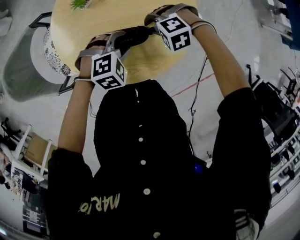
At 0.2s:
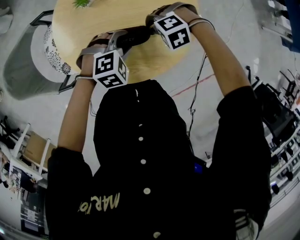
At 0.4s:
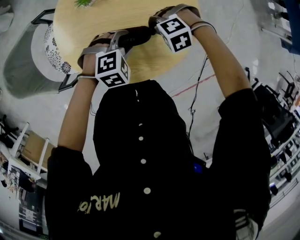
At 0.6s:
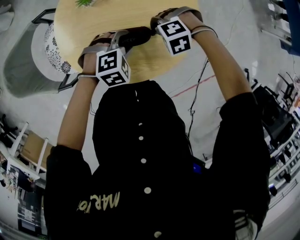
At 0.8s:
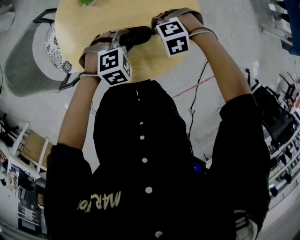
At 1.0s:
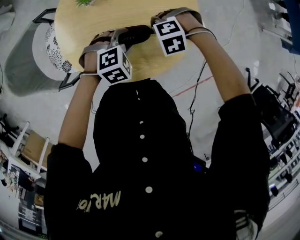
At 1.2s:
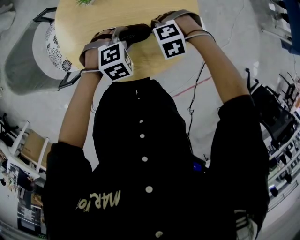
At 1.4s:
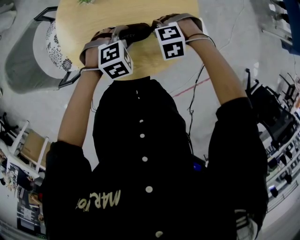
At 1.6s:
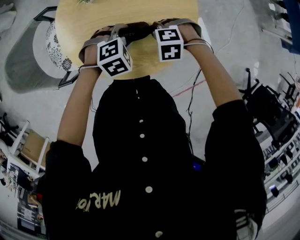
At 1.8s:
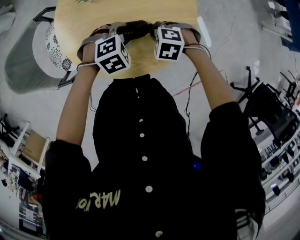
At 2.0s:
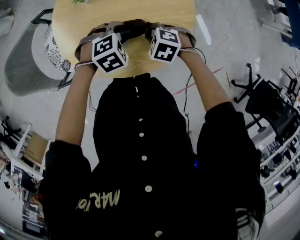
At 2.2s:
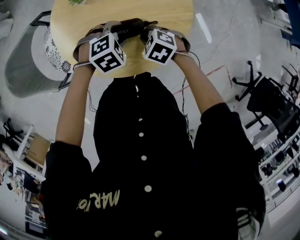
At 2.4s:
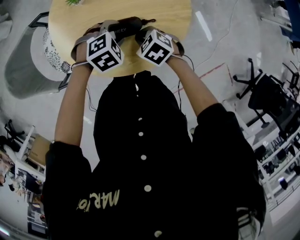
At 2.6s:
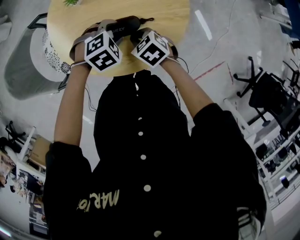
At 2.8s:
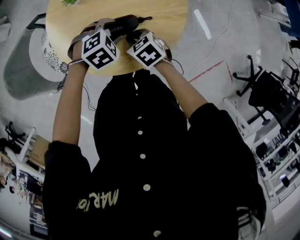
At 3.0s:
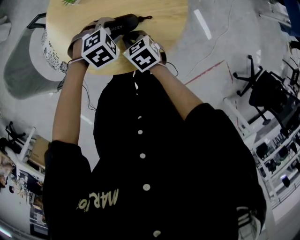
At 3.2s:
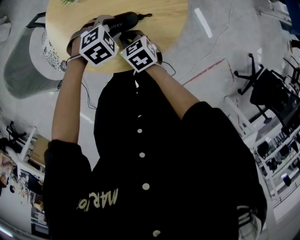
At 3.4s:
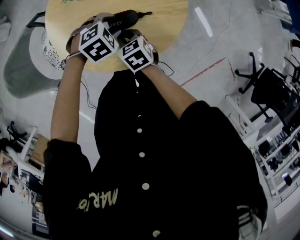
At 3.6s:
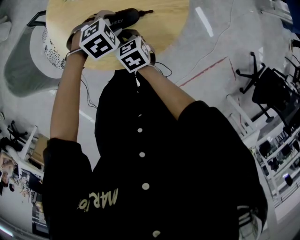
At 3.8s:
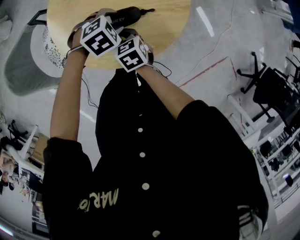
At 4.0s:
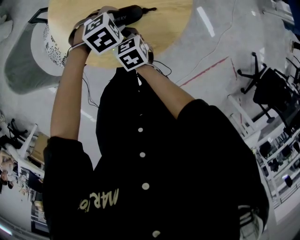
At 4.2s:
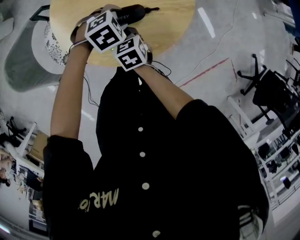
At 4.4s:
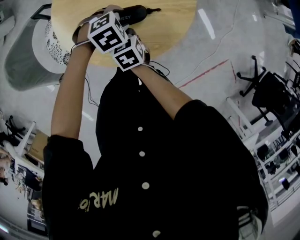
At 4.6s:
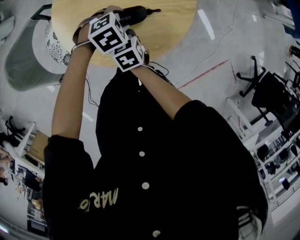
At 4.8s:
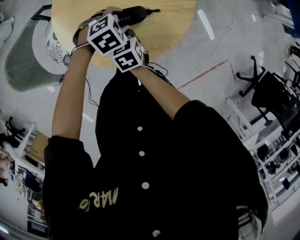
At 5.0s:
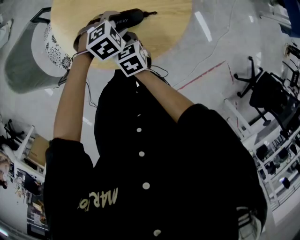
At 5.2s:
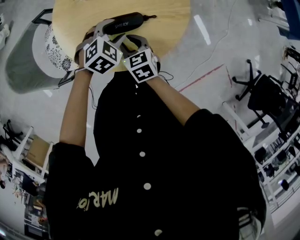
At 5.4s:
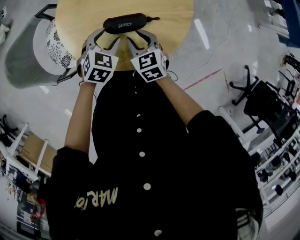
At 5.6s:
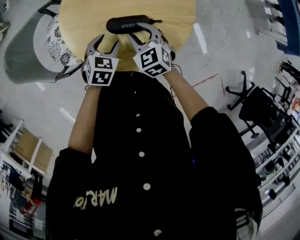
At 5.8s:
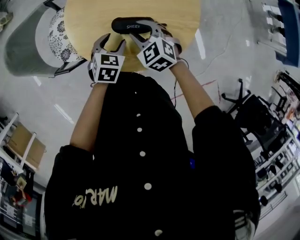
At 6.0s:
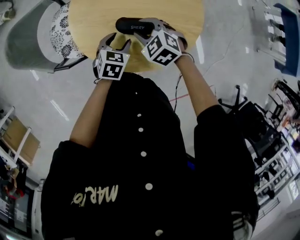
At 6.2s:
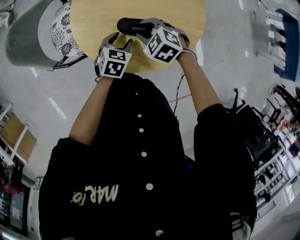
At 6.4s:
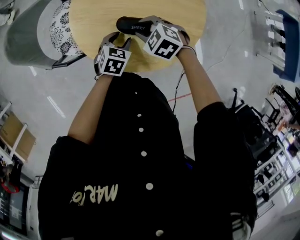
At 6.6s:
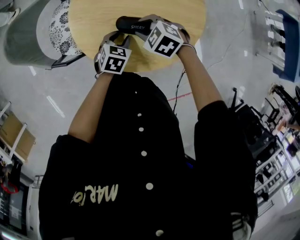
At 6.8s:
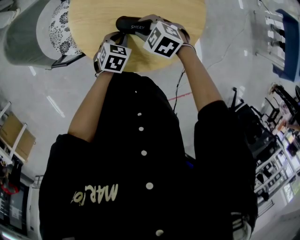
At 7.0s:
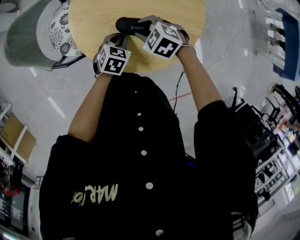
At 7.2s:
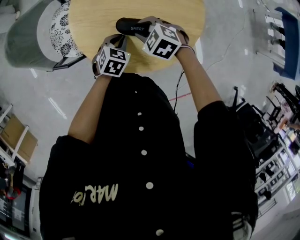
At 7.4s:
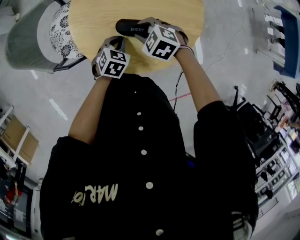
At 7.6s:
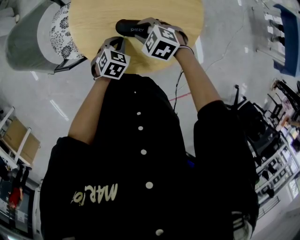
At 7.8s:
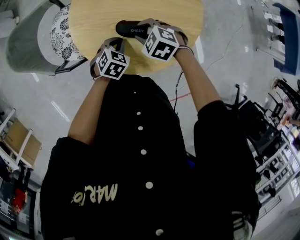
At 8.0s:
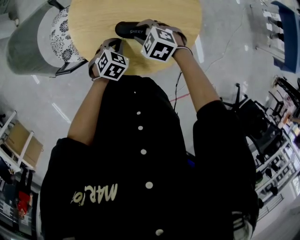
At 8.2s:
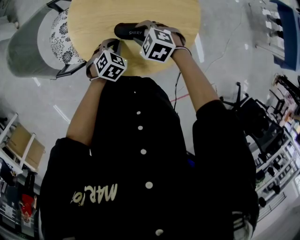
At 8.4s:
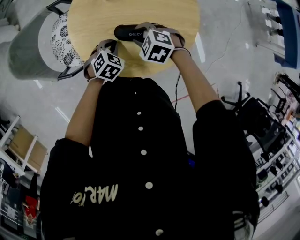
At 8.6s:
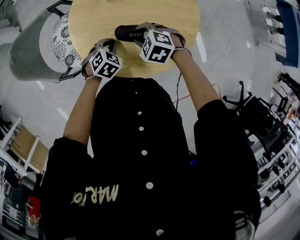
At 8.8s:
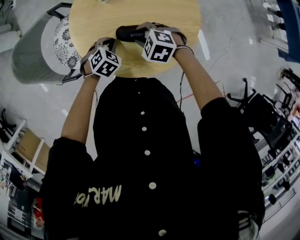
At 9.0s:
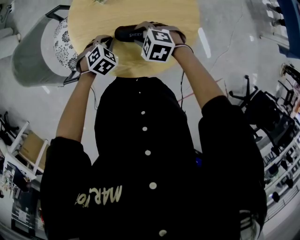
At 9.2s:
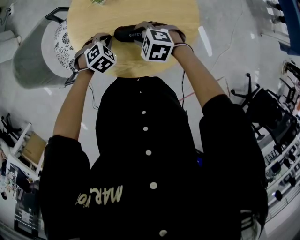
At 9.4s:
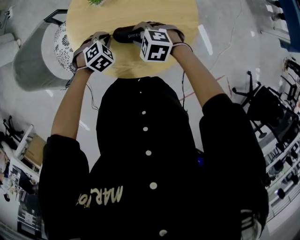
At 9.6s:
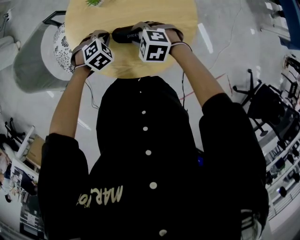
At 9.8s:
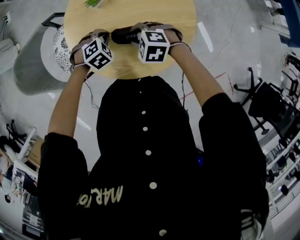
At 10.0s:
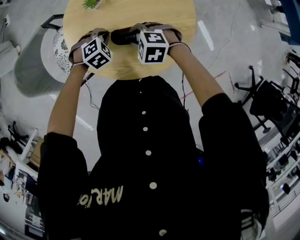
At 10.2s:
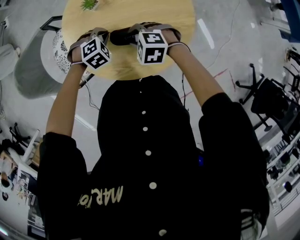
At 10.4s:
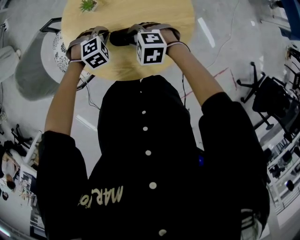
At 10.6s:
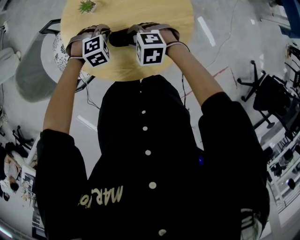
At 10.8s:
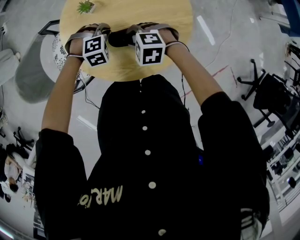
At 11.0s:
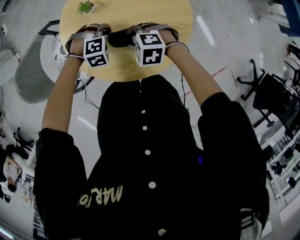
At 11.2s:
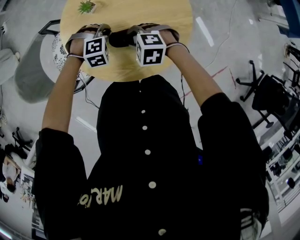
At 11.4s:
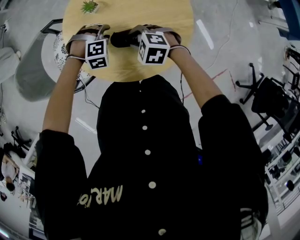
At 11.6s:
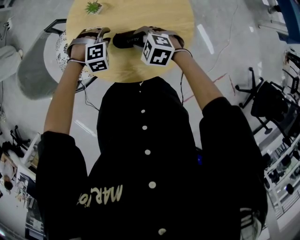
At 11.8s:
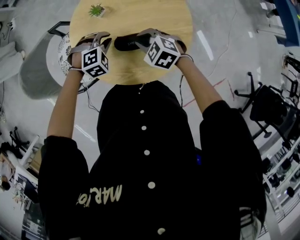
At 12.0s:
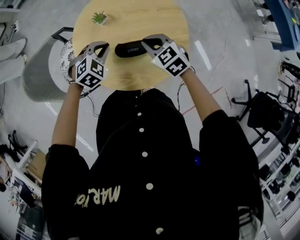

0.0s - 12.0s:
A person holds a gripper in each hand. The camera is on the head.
0.0s - 1.6s: The grippers make only small movements.
1.6s - 3.0s: The right gripper ends up about 5 cm from where it was, and twists roughly 60 degrees clockwise, seen from behind.
3.0s - 4.4s: The right gripper heads to the left, covering some 5 cm.
4.4s - 6.0s: The right gripper moves upward, some 5 cm, twists roughly 50 degrees counterclockwise, seen from behind, and opens its fingers, while the left gripper moves approximately 5 cm, and twists about 50 degrees counterclockwise, seen from behind.
6.0s - 7.6s: The left gripper closes its fingers.
7.6s - 9.0s: The left gripper shifts by approximately 5 cm, and swivels roughly 30 degrees.
9.0s - 10.4s: The left gripper changes place by some 5 cm, and swivels about 30 degrees.
10.4s - 12.0s: The right gripper moves upward and to the right, roughly 10 cm, swivels about 40 degrees, and closes up. Meanwhile the left gripper shifts approximately 15 cm upward, changes its angle by about 20 degrees, and opens and closes again.

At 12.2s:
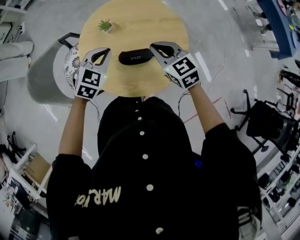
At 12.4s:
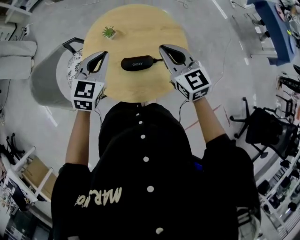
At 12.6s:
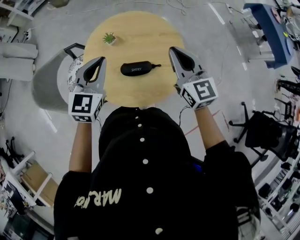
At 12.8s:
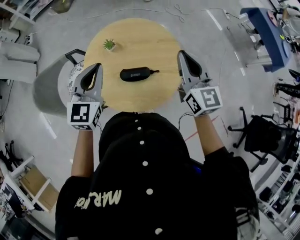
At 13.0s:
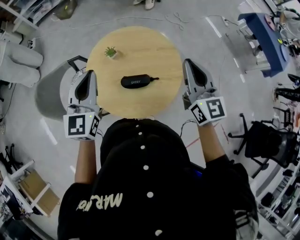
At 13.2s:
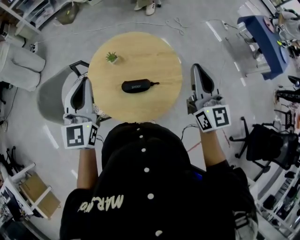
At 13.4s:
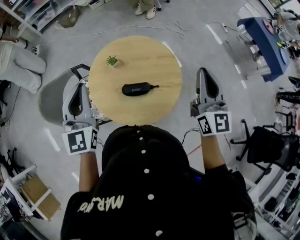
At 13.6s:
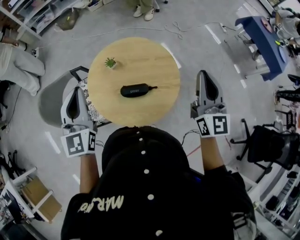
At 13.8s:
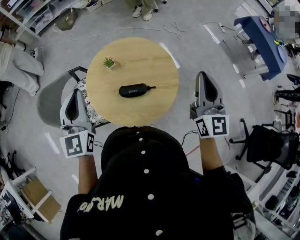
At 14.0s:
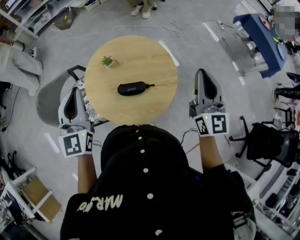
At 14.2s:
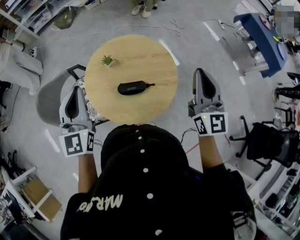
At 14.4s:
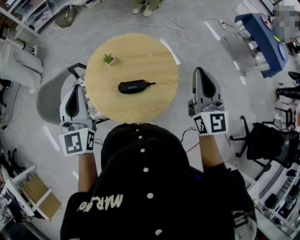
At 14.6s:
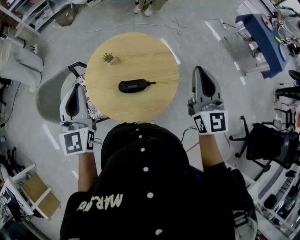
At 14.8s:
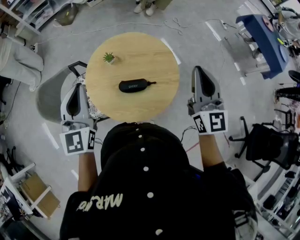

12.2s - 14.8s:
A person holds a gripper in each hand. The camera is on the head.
12.2s - 13.4s: The left gripper is displaced upward by roughly 25 cm, and tips its fingers upward by approximately 40 degrees, while the right gripper heads upward and to the right, covering about 30 cm, and angles its fingers upward, by about 40 degrees.
13.4s - 14.8s: The grippers stay close to where they were, moving slightly.

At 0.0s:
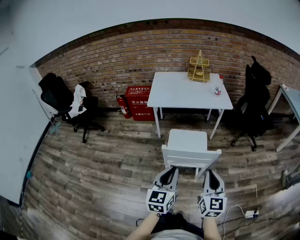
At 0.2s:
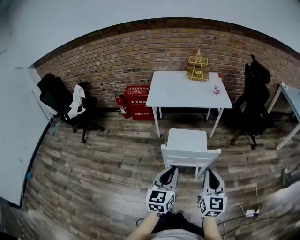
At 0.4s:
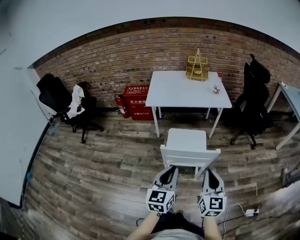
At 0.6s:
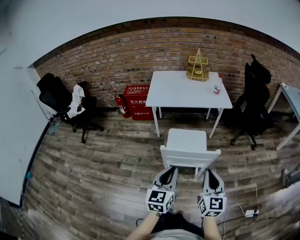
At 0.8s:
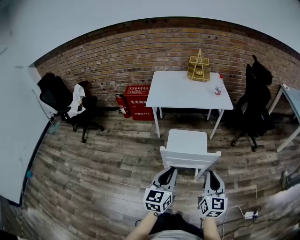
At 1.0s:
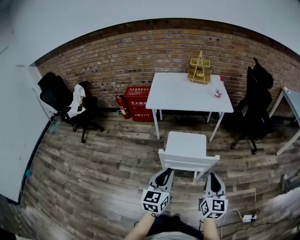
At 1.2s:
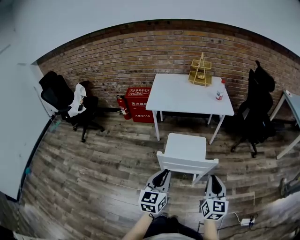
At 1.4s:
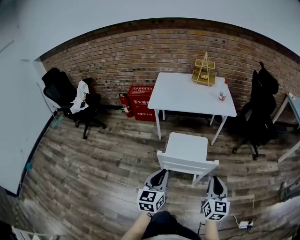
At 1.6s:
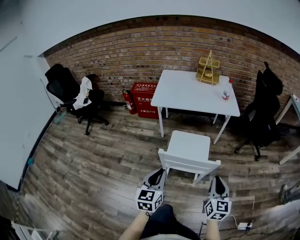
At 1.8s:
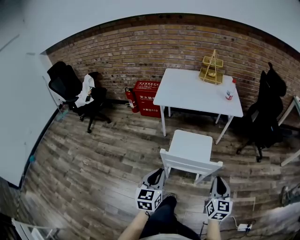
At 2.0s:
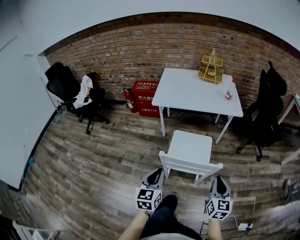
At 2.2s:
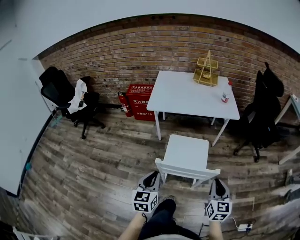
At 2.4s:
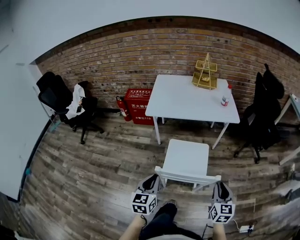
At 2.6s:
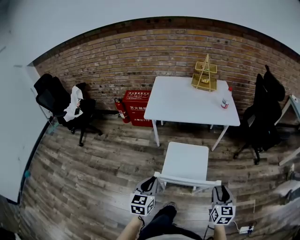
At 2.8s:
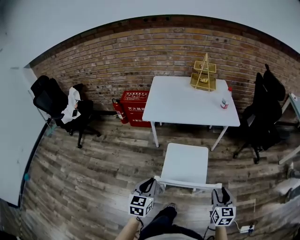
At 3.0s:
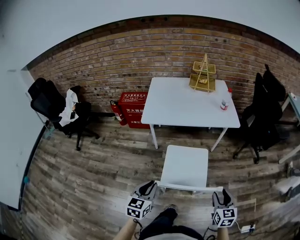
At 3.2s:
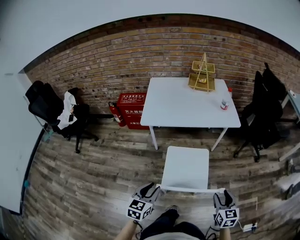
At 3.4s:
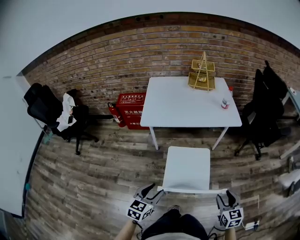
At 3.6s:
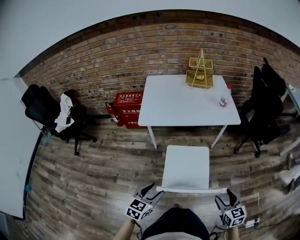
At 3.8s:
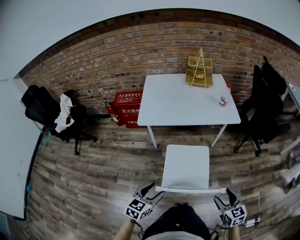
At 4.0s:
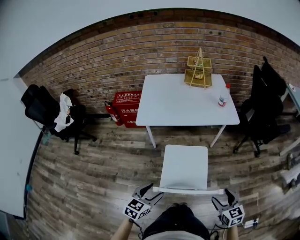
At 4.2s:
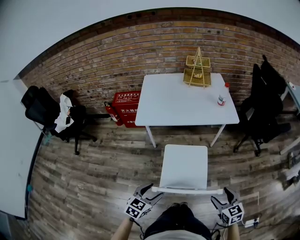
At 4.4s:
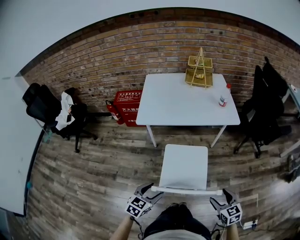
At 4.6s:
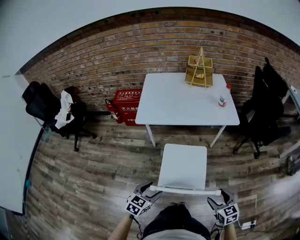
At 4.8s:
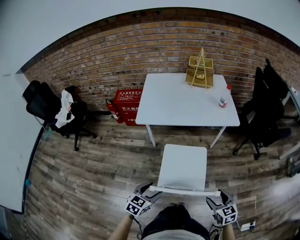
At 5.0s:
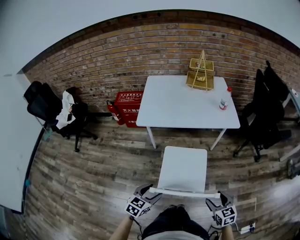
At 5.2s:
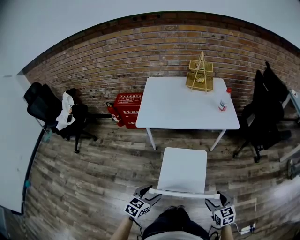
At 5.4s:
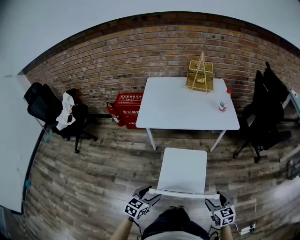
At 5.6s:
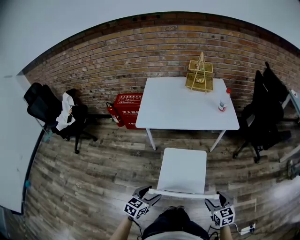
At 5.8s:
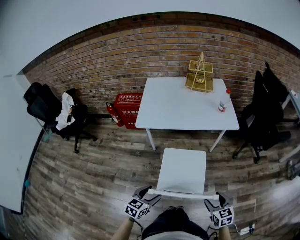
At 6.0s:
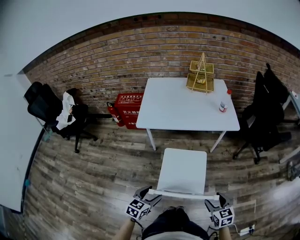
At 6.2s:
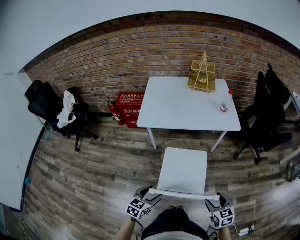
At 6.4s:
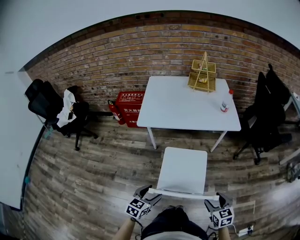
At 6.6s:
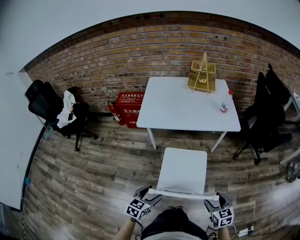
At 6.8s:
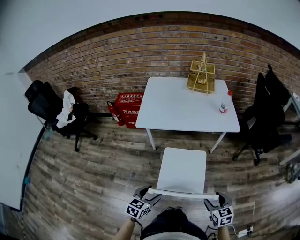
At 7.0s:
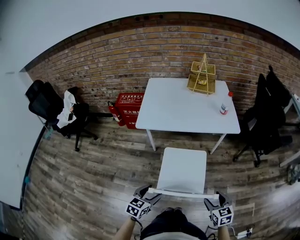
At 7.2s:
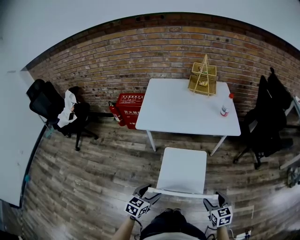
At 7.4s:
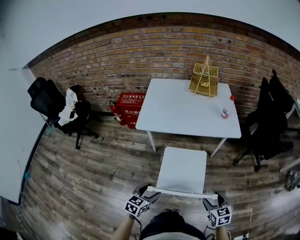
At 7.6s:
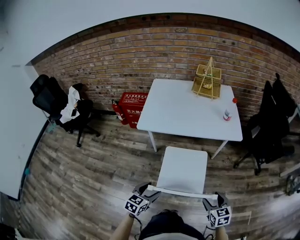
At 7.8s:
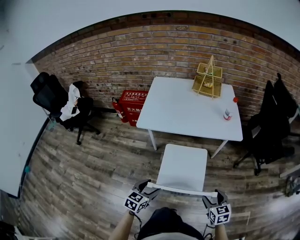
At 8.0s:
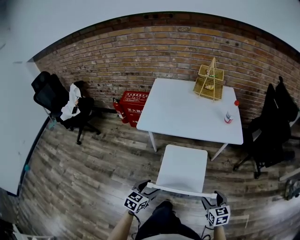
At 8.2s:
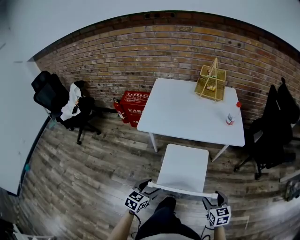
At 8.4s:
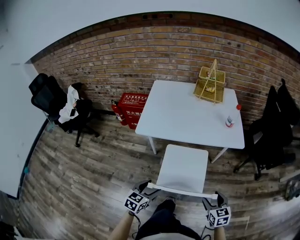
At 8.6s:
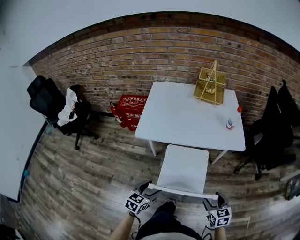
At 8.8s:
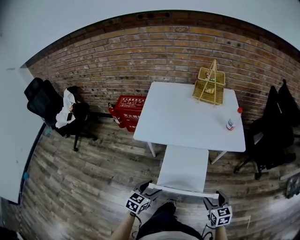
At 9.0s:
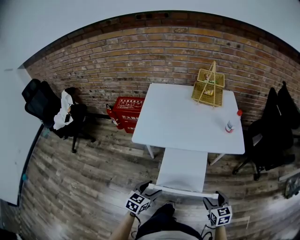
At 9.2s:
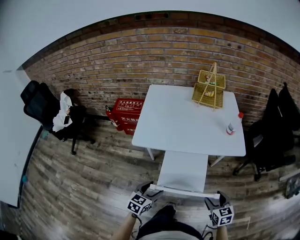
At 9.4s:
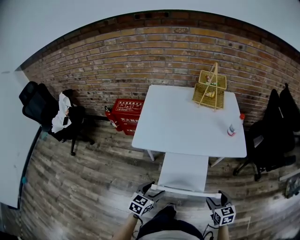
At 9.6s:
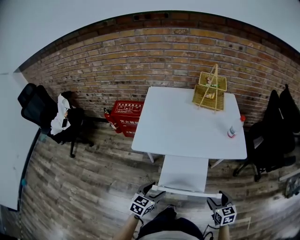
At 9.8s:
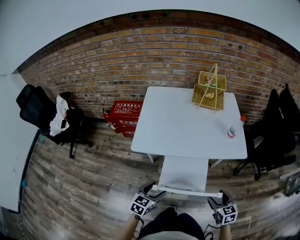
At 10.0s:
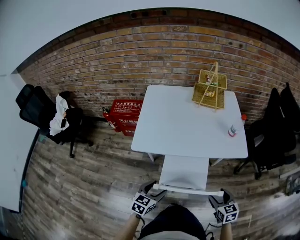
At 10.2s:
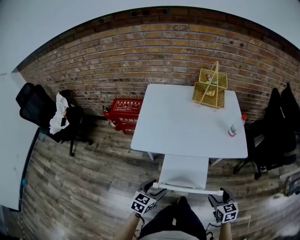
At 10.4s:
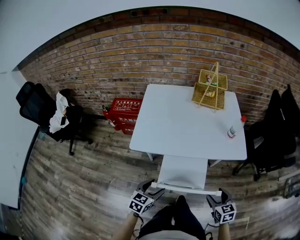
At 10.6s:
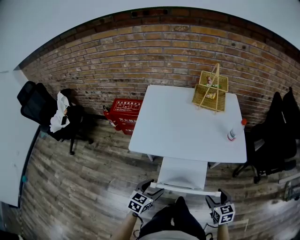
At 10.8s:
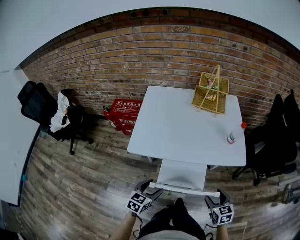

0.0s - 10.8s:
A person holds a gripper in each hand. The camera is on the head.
0.0s - 1.6s: The left gripper goes roughly 5 cm downward, while the right gripper travels to the right, forward and downward by approximately 10 cm.
1.6s - 3.0s: The left gripper is displaced forward, to the left and downward by about 15 cm. Meanwhile the right gripper heads forward and downward, covering roughly 10 cm, and opens its fingers.
3.0s - 4.6s: The right gripper opens its fingers. Meanwhile the left gripper travels downward by roughly 5 cm, changes its angle by roughly 20 degrees, and opens up.
4.6s - 6.2s: The grippers move only a little.
6.2s - 7.8s: Both grippers travel together forward, some 10 cm.
7.8s - 9.2s: Both grippers move forward, approximately 10 cm.
9.2s - 10.8s: Both grippers move forward, some 10 cm.
